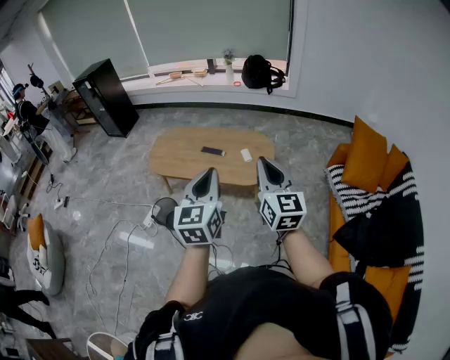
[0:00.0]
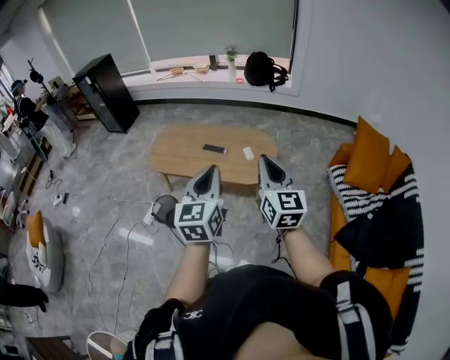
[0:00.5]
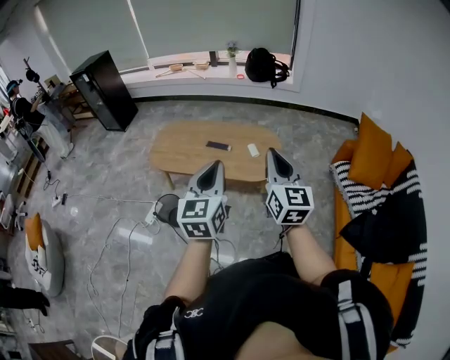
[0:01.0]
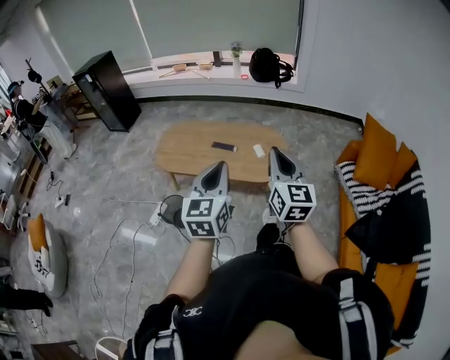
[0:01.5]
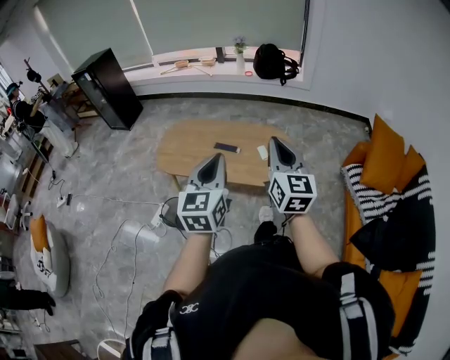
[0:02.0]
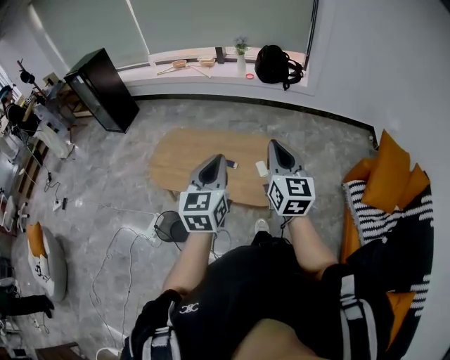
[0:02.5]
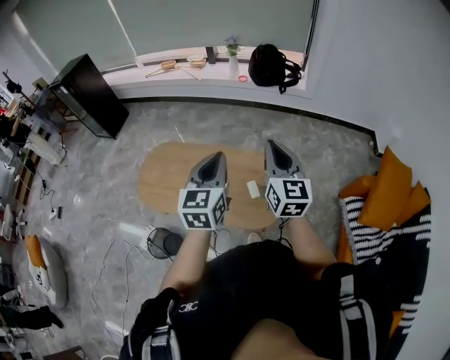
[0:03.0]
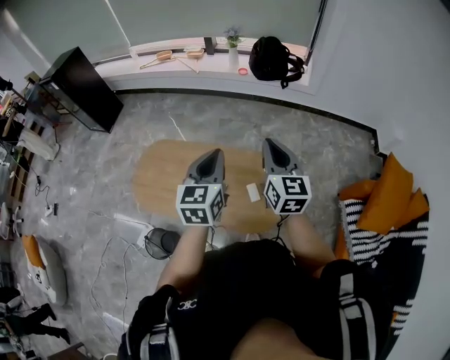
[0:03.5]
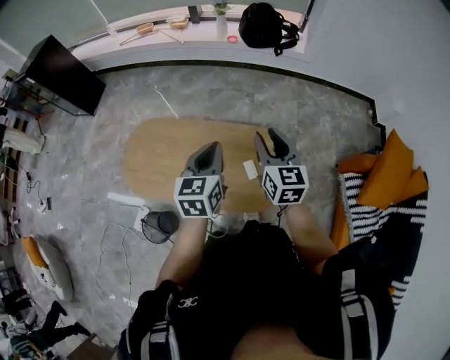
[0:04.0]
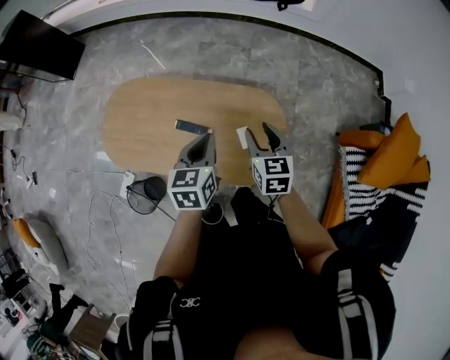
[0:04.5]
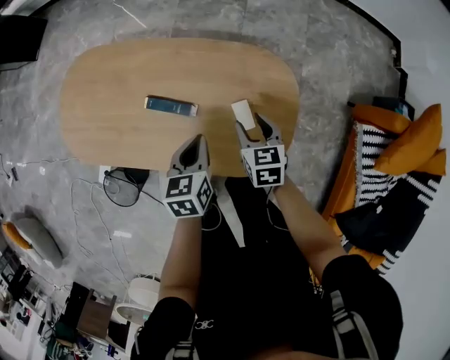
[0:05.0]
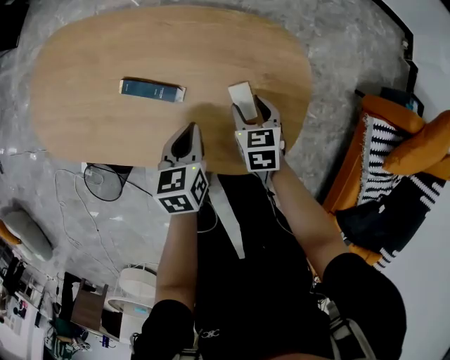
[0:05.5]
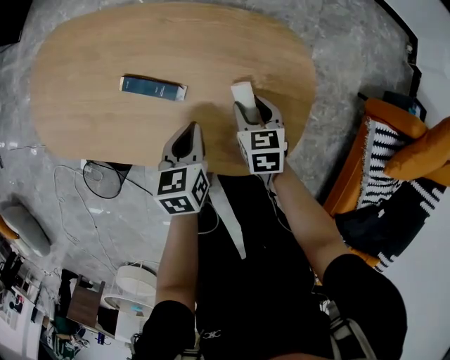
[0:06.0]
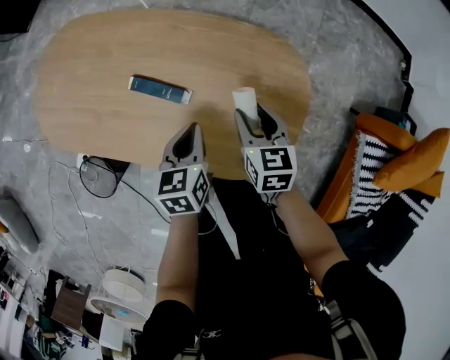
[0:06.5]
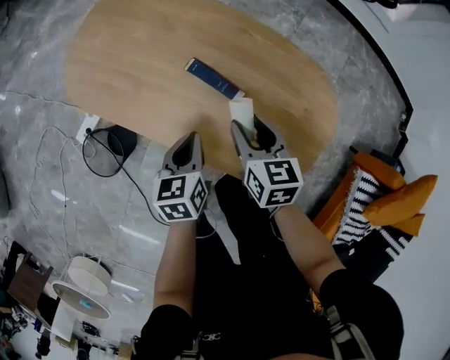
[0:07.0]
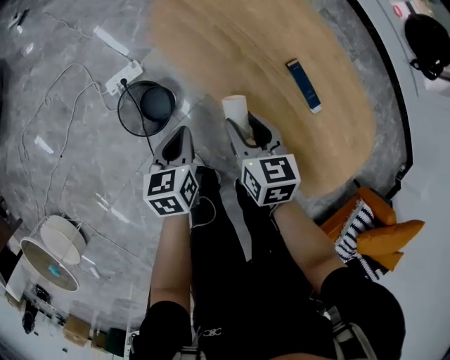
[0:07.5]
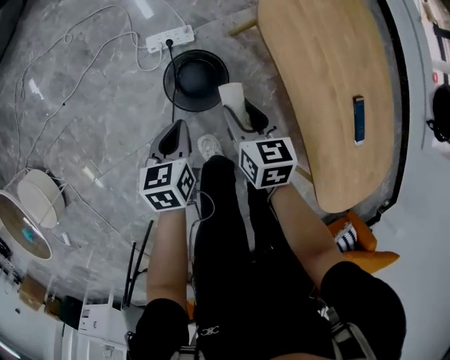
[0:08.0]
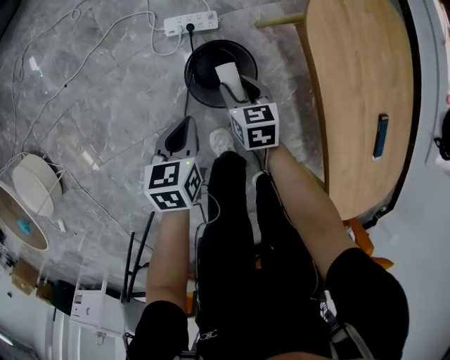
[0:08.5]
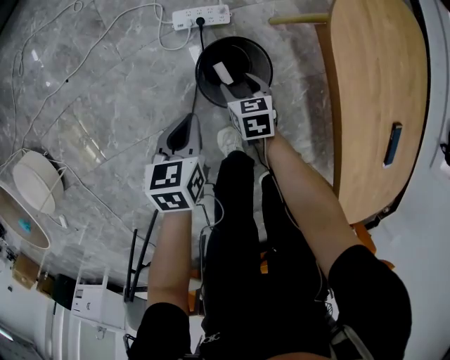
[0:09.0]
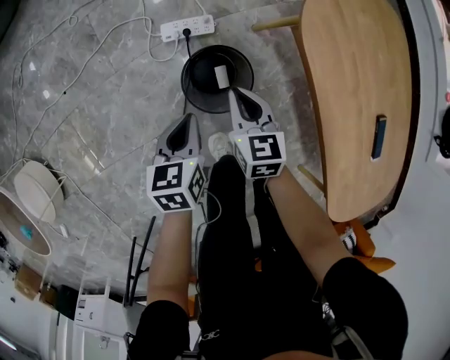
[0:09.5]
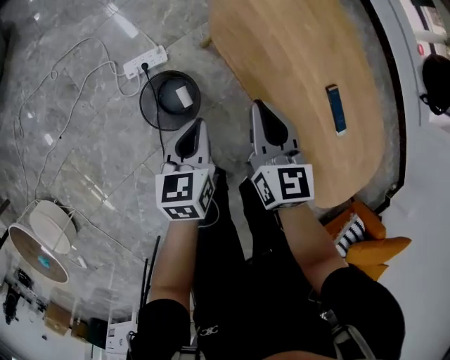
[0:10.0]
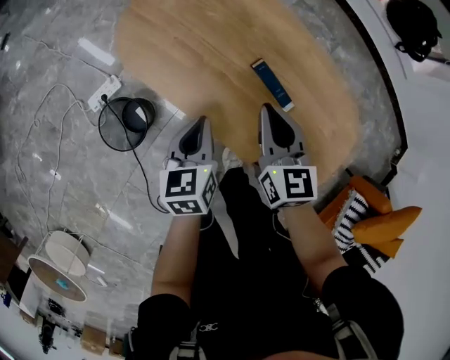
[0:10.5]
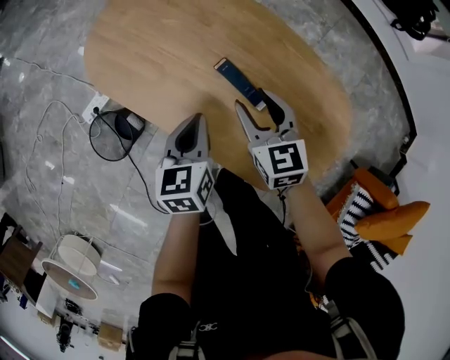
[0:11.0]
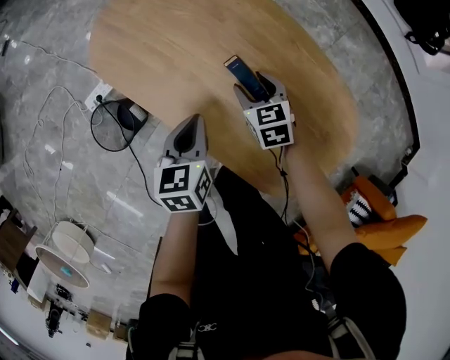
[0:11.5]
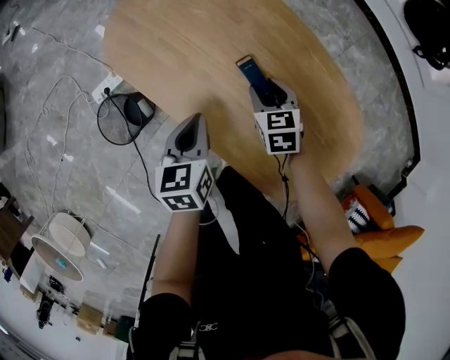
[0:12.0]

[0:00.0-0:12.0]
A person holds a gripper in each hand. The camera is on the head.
0:00.0 to 0:02.0: Both grippers travel together forward and to the left, approximately 15 cm.
0:02.0 to 0:04.0: The two grippers travel together, forward, roughly 40 cm. The right gripper opens up.
0:04.0 to 0:06.0: Both grippers move downward, approximately 50 cm. The left gripper rotates approximately 30 degrees, while the right gripper angles its fingers downward, by roughly 40 degrees.
0:06.0 to 0:08.0: Both grippers are carried about 60 cm. The left gripper turns by roughly 50 degrees, while the right gripper rotates roughly 50 degrees.
0:08.0 to 0:10.0: The left gripper travels to the right and upward by about 15 cm; the right gripper shifts approximately 10 cm to the right, moves approximately 20 cm downward and comes back, swivels some 30 degrees, and closes its fingers.
0:10.0 to 0:12.0: Both grippers travel together to the right, about 30 cm. The right gripper turns by some 20 degrees, and opens.

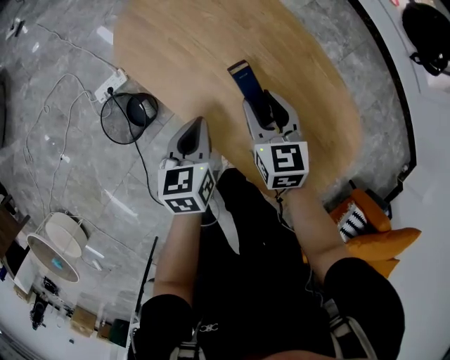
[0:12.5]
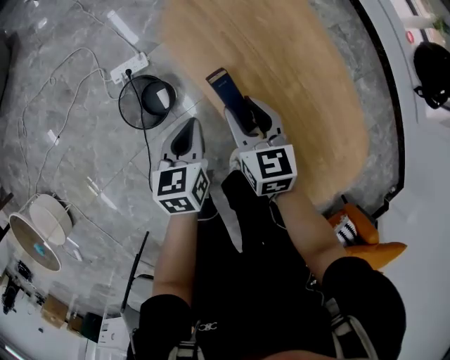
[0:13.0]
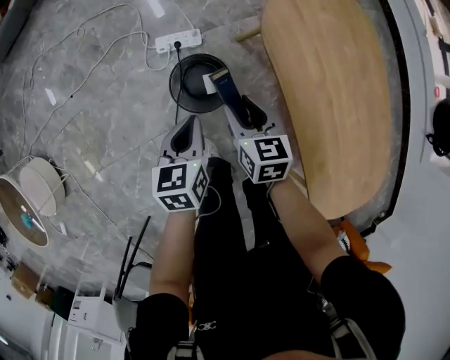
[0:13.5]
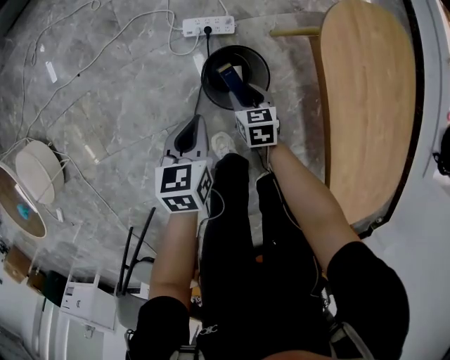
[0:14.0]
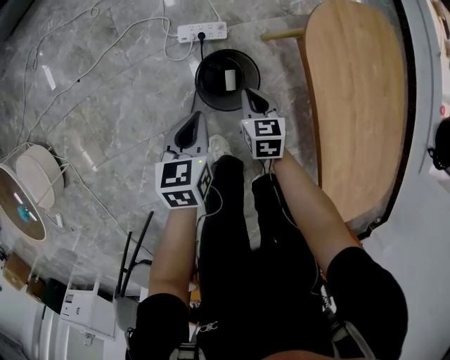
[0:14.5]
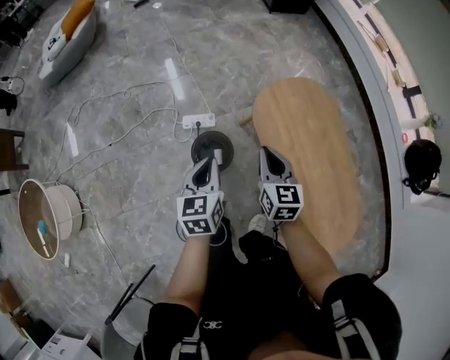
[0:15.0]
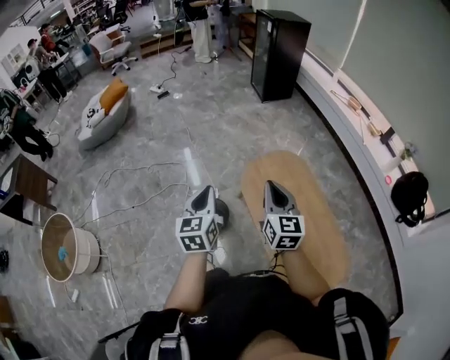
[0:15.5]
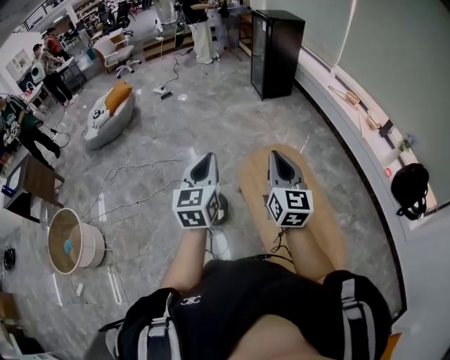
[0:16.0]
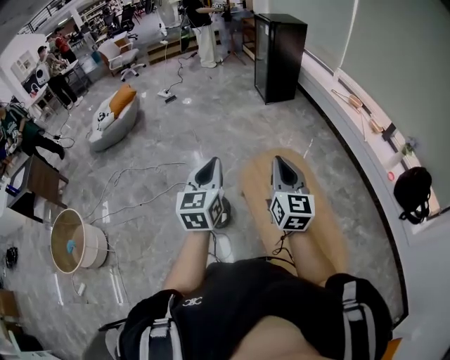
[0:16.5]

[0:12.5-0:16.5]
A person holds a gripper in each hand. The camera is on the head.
0:12.5 to 0:14.5: Both grippers are carried approximately 50 cm. The left gripper changes its angle by approximately 20 degrees; the right gripper changes its angle by about 30 degrees, and closes.
0:14.5 to 0:16.5: The grippers both shift upward and to the right by about 70 cm. The left gripper points its fingers about 40 degrees further upward; the right gripper tips its fingers upward by some 50 degrees.

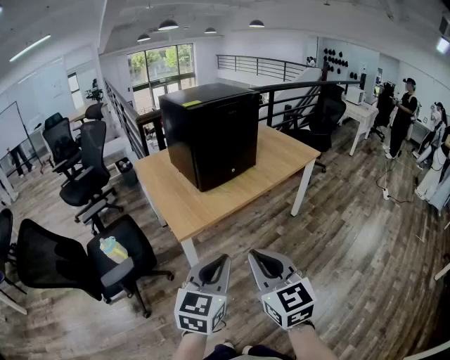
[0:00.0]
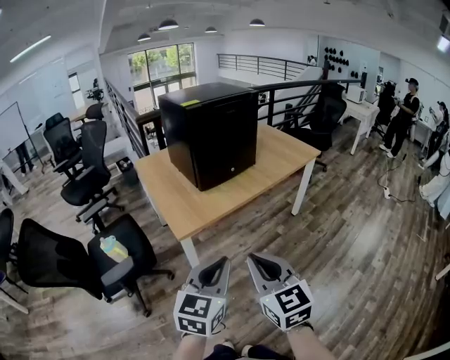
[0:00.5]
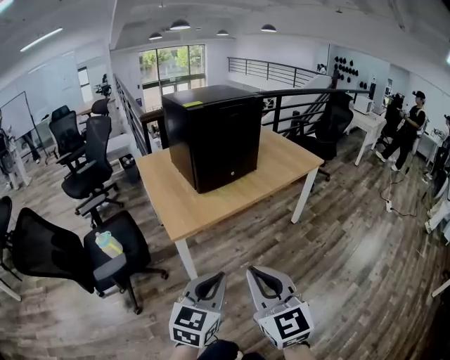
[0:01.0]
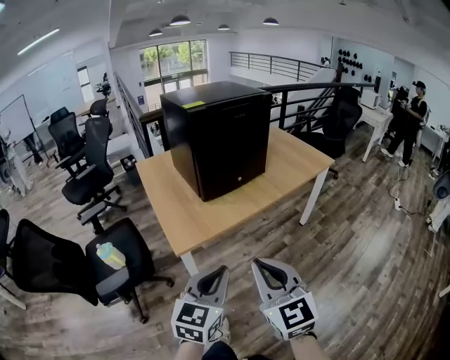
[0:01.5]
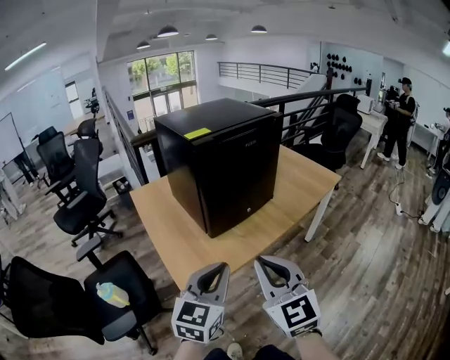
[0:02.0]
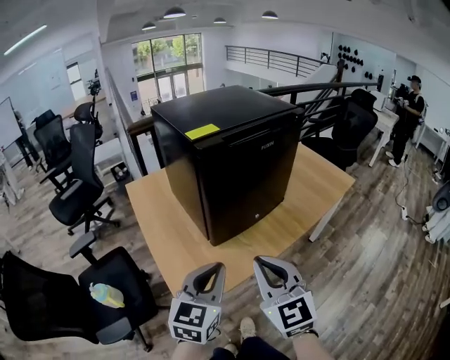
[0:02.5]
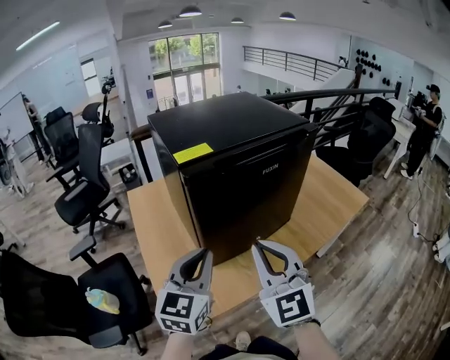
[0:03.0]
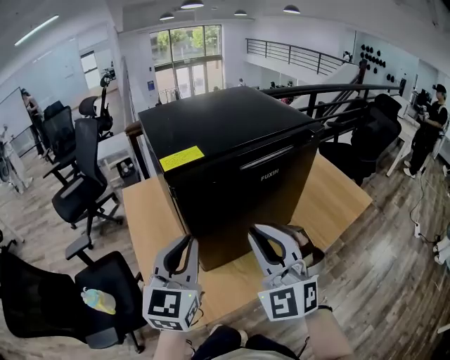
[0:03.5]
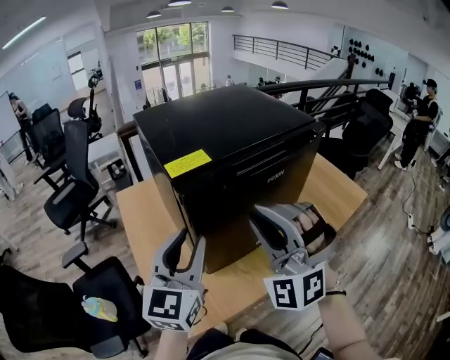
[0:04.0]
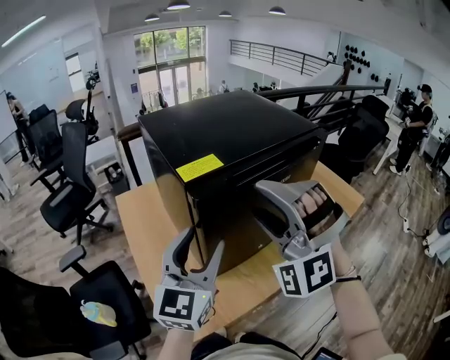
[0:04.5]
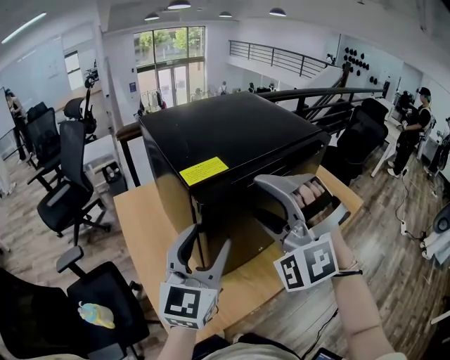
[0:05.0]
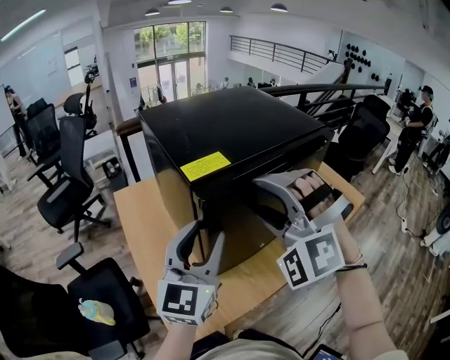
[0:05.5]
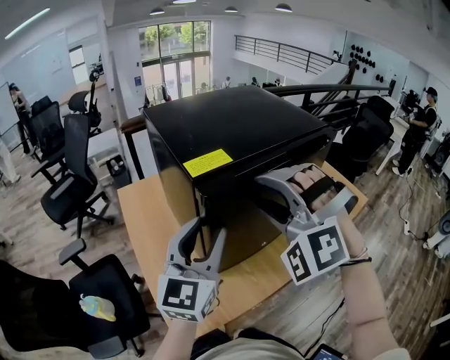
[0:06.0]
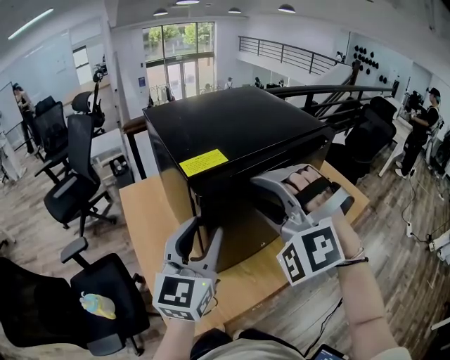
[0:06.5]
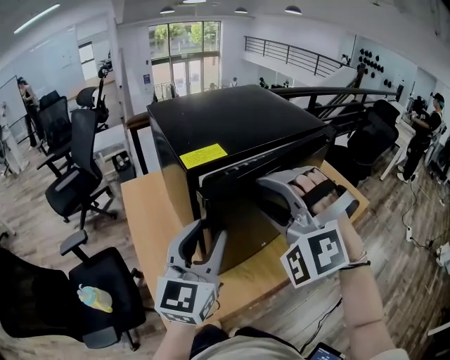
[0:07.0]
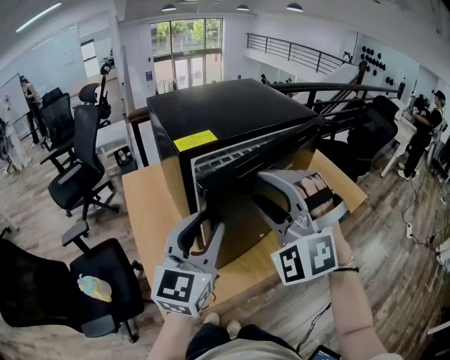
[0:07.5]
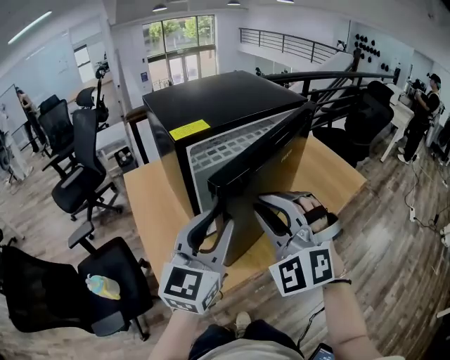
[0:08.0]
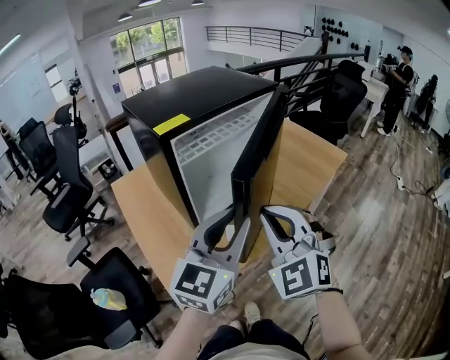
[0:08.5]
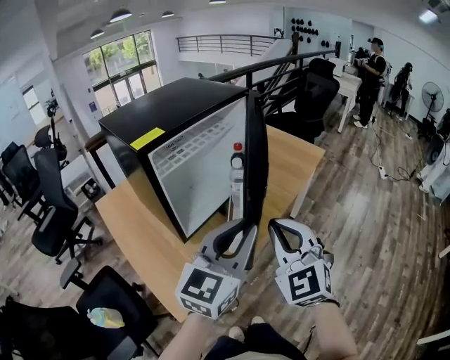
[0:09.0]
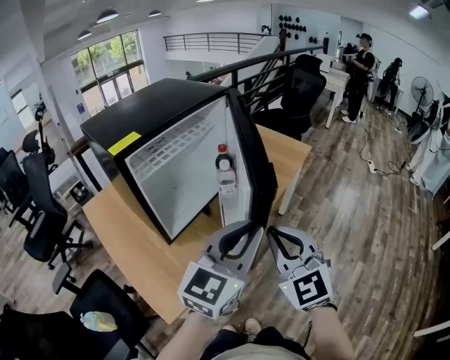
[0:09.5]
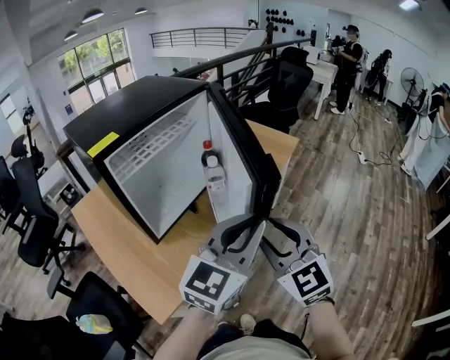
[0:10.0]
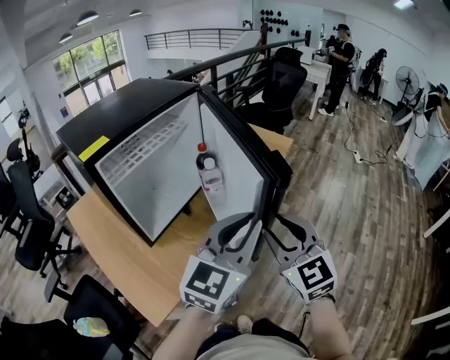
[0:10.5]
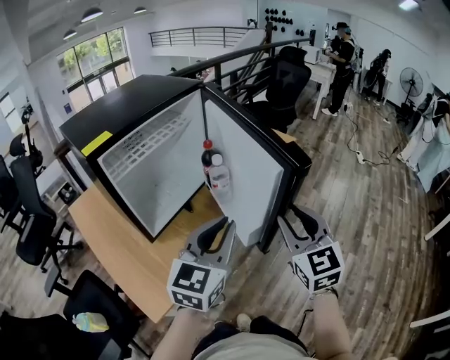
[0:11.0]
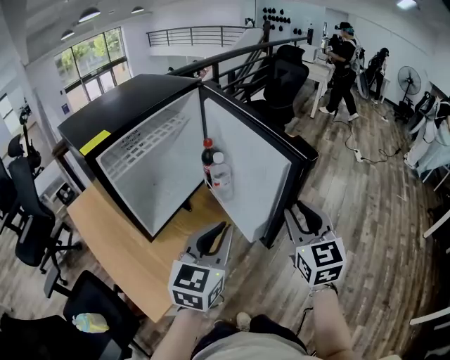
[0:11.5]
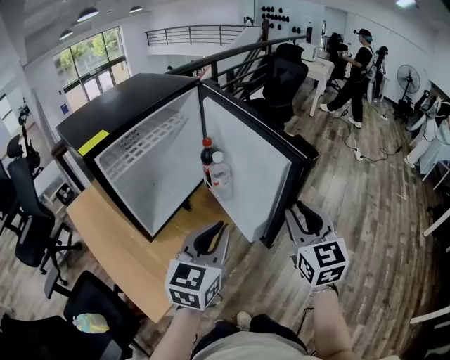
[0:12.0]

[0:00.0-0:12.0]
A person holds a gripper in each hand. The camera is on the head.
0:00.0 to 0:02.0: The two grippers go approximately 30 cm forward.
0:02.0 to 0:04.0: The grippers both shift forward by approximately 35 cm. The left gripper opens up. The right gripper rotates around the line of its fingers by roughly 60 degrees, counterclockwise from behind.
0:04.0 to 0:06.0: The right gripper moves about 5 cm, changes its angle by roughly 30 degrees, and opens.
0:06.0 to 0:08.0: The left gripper moves backward and to the right, some 10 cm, while the right gripper shifts some 10 cm backward, changes its angle by approximately 20 degrees, and closes up.
0:08.0 to 0:10.0: The right gripper changes place by approximately 20 cm, and twists about 50 degrees clockwise, seen from behind; the left gripper shifts by some 25 cm, swivels some 40 degrees, and closes its fingers.
0:10.0 to 0:12.0: The left gripper is displaced downward and to the left by about 10 cm, while the right gripper goes roughly 10 cm to the right and forward, and turns by roughly 20 degrees.
